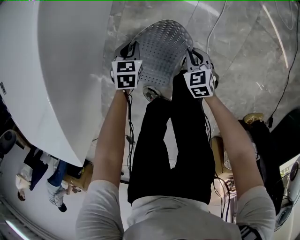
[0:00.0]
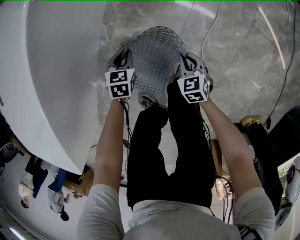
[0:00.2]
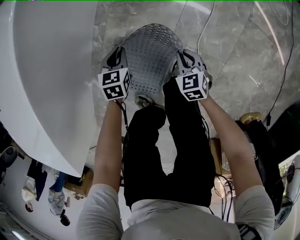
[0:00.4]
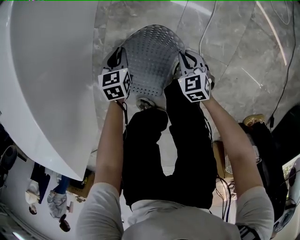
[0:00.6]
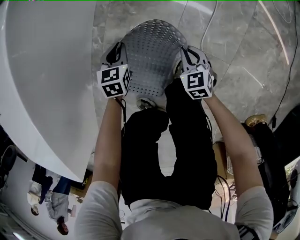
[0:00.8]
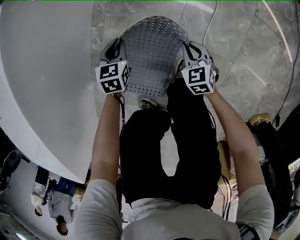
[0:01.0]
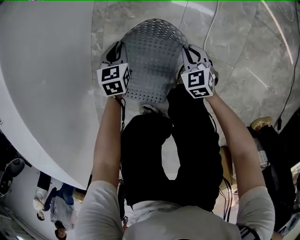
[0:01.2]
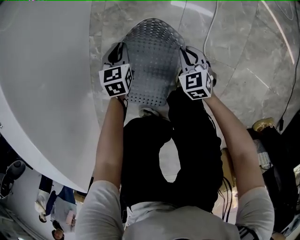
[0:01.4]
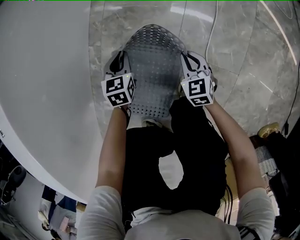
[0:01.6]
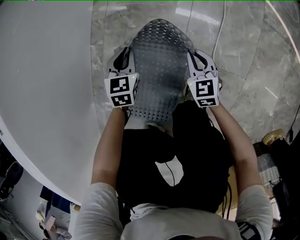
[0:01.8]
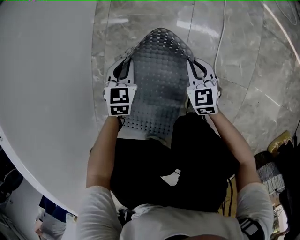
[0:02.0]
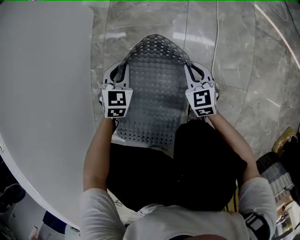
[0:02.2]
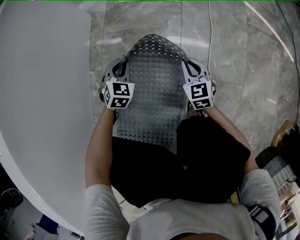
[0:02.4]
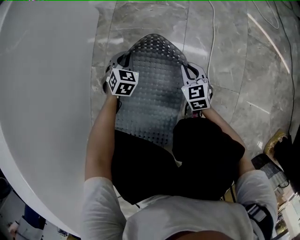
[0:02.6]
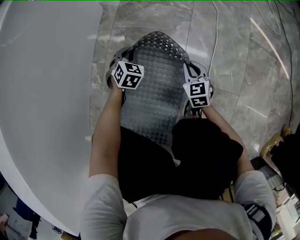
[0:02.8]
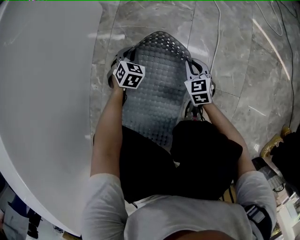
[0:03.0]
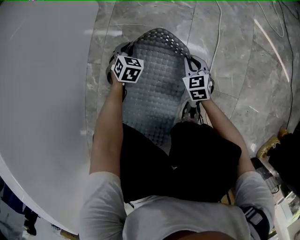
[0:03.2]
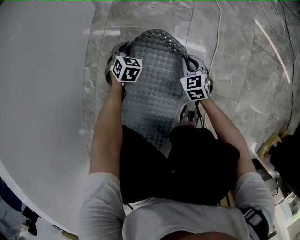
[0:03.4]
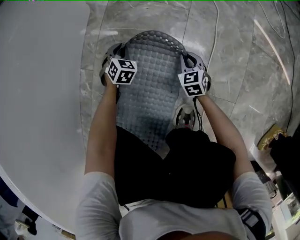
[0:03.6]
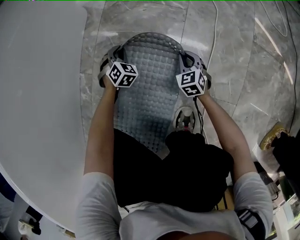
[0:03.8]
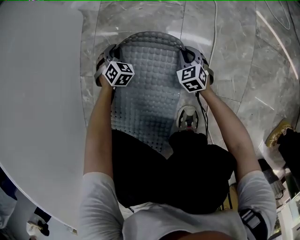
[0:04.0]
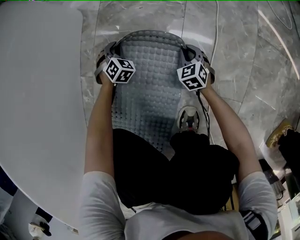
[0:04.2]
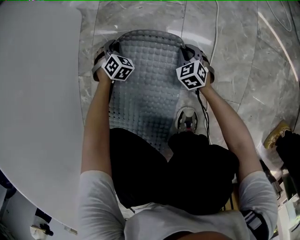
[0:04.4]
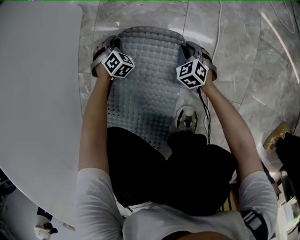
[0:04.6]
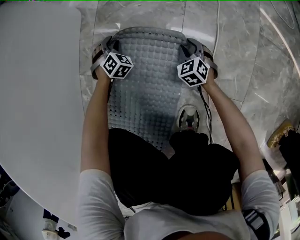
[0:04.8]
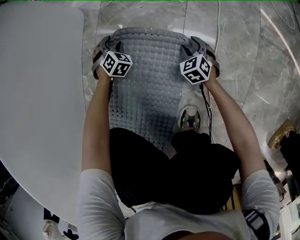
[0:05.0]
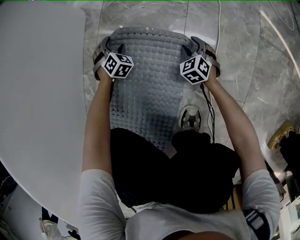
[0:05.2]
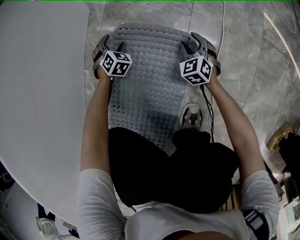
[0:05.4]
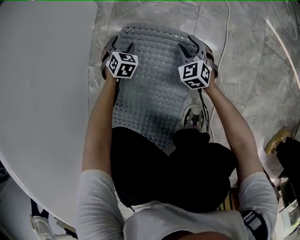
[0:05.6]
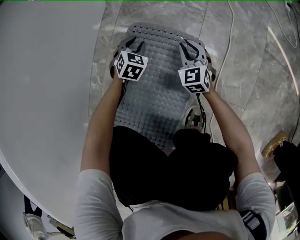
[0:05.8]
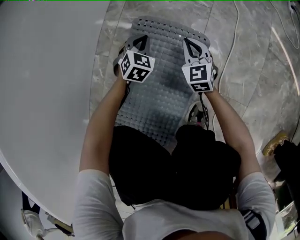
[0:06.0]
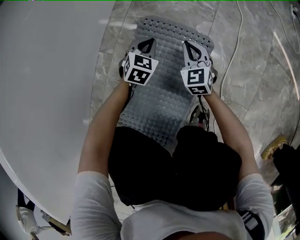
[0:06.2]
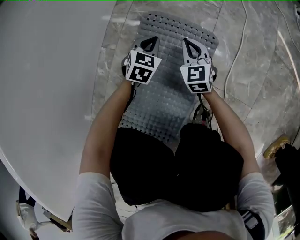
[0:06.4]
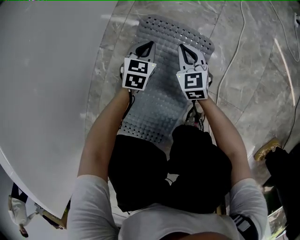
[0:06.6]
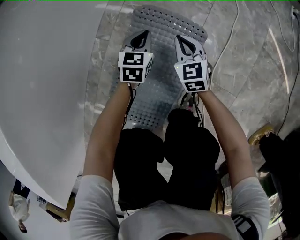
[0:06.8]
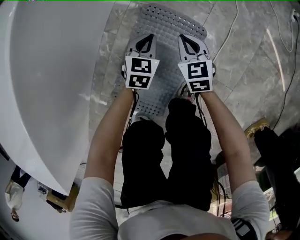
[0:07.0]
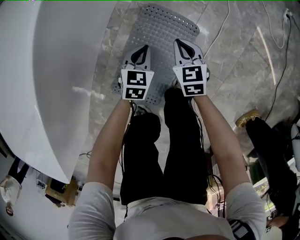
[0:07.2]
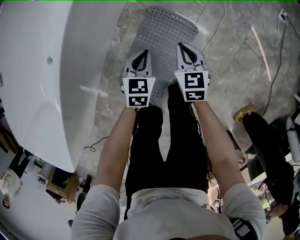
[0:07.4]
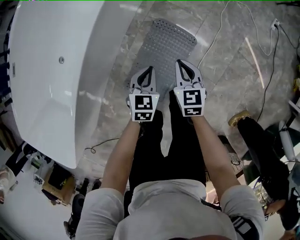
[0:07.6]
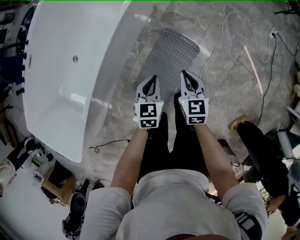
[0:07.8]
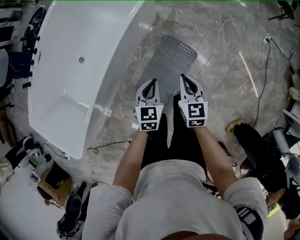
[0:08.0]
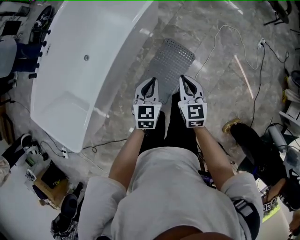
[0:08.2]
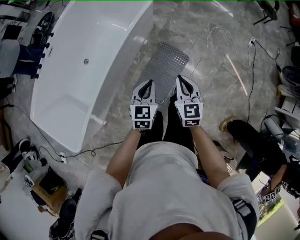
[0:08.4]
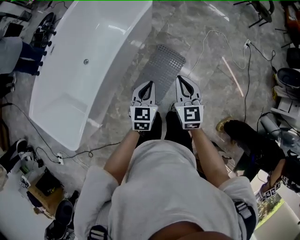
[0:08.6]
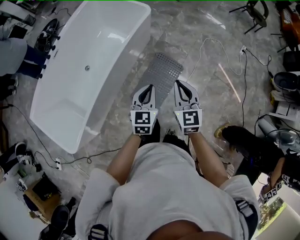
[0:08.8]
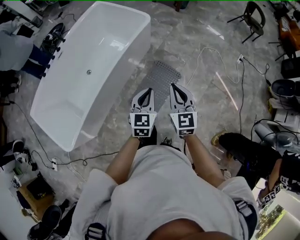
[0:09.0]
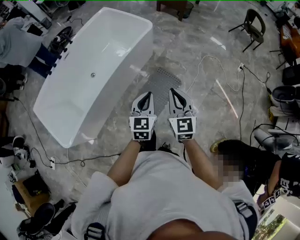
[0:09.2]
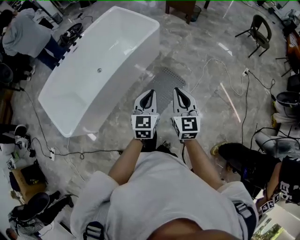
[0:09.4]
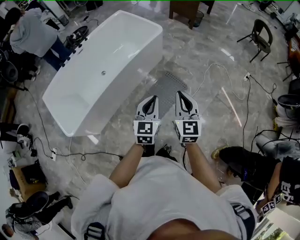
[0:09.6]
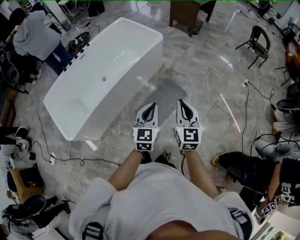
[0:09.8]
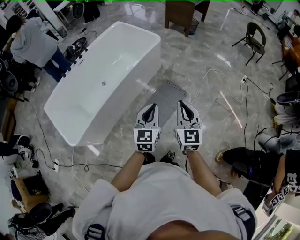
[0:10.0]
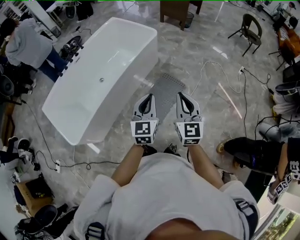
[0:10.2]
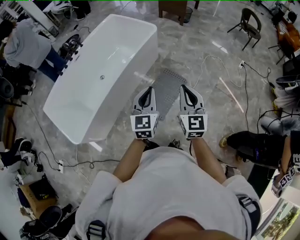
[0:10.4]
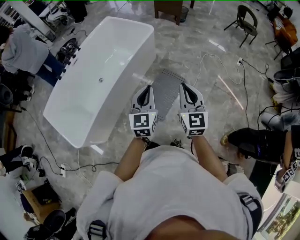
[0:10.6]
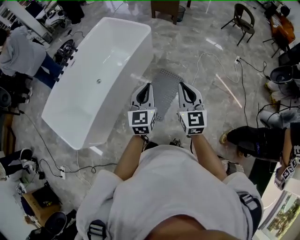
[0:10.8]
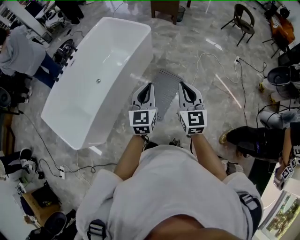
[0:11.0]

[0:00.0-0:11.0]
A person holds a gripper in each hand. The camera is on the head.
0.0 to 1.6 s: Both grippers move downward, roughly 15 cm.
1.6 to 3.2 s: Both grippers travel together downward and forward, approximately 15 cm. The left gripper turns by approximately 30 degrees.
3.2 to 4.8 s: The left gripper heads forward and downward, covering roughly 10 cm, and rotates approximately 30 degrees. Meanwhile the right gripper moves downward, forward and to the right, approximately 10 cm, and opens its fingers.
4.8 to 6.2 s: The right gripper goes approximately 15 cm to the left and upward, changes its angle by about 20 degrees, and closes its fingers, while the left gripper shifts roughly 15 cm upward and backward, rotates approximately 40 degrees, and closes.
6.2 to 7.8 s: Both grippers move upward, approximately 50 cm. The left gripper turns by roughly 40 degrees. The right gripper swivels about 20 degrees.
7.8 to 9.4 s: Both grippers travel together upward and backward, approximately 50 cm. The left gripper changes its angle by roughly 30 degrees, while the right gripper changes its angle by some 30 degrees.
9.4 to 11.0 s: The left gripper travels upward and to the left by about 10 cm; the right gripper is displaced backward by some 5 cm.

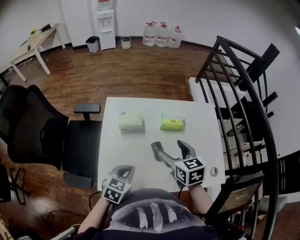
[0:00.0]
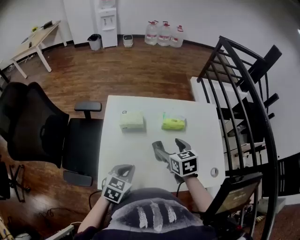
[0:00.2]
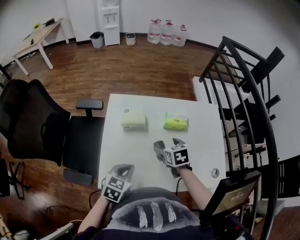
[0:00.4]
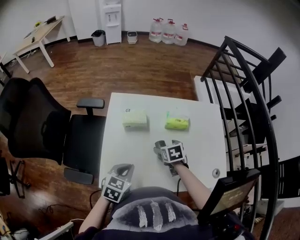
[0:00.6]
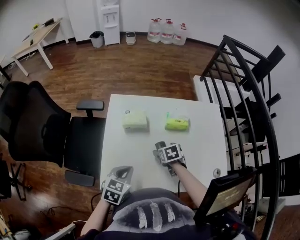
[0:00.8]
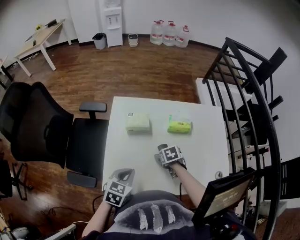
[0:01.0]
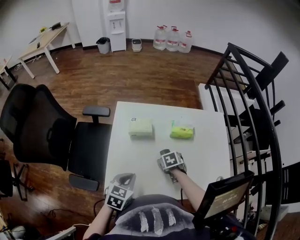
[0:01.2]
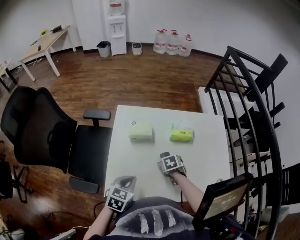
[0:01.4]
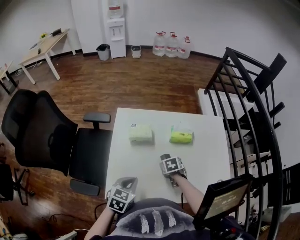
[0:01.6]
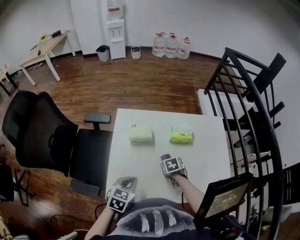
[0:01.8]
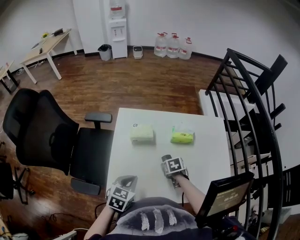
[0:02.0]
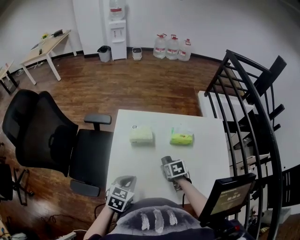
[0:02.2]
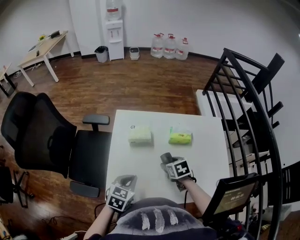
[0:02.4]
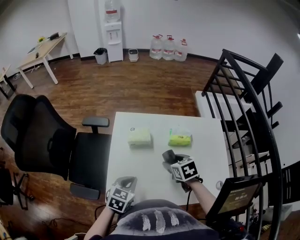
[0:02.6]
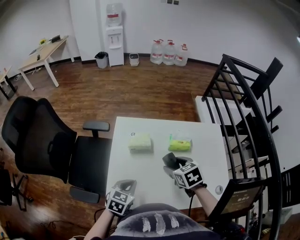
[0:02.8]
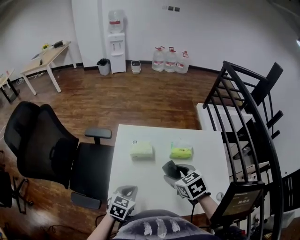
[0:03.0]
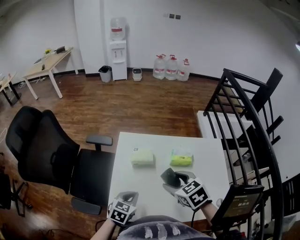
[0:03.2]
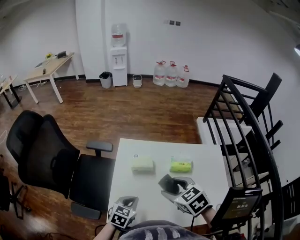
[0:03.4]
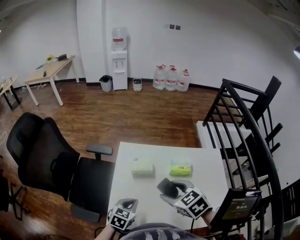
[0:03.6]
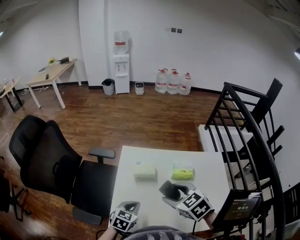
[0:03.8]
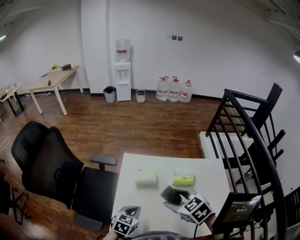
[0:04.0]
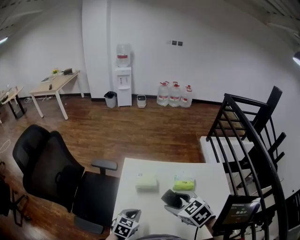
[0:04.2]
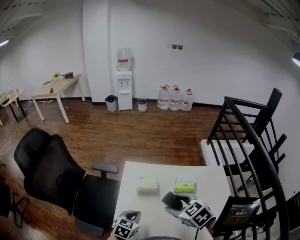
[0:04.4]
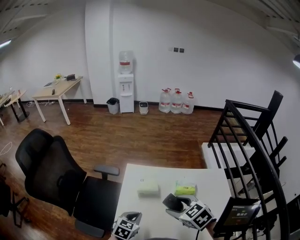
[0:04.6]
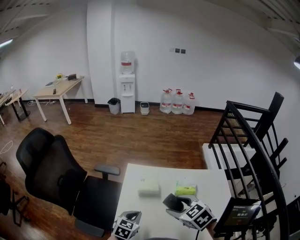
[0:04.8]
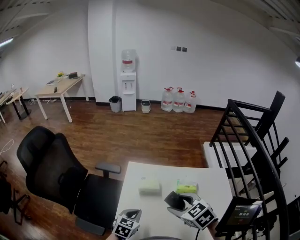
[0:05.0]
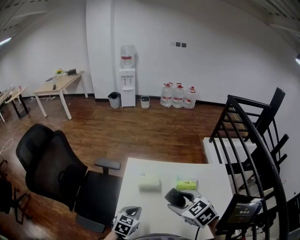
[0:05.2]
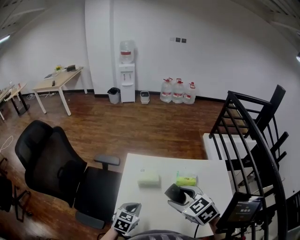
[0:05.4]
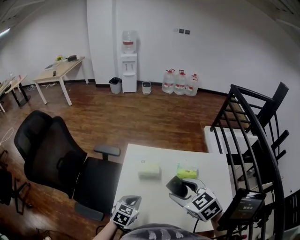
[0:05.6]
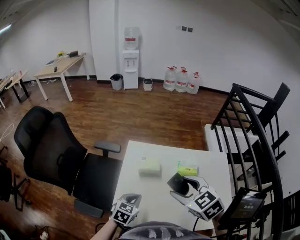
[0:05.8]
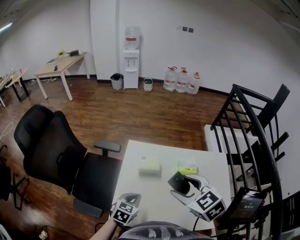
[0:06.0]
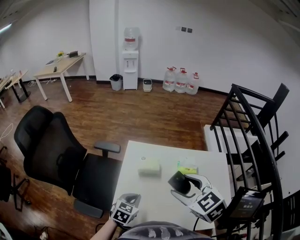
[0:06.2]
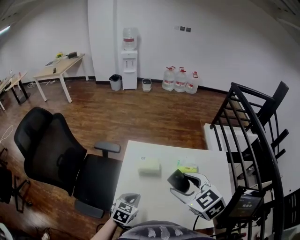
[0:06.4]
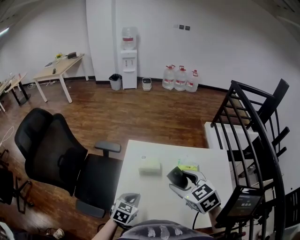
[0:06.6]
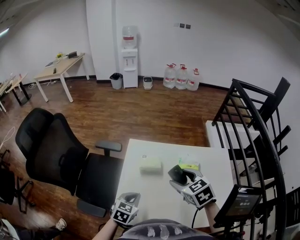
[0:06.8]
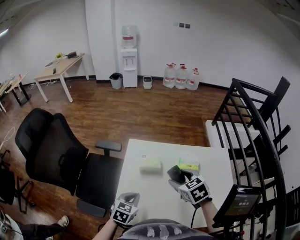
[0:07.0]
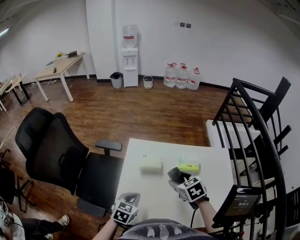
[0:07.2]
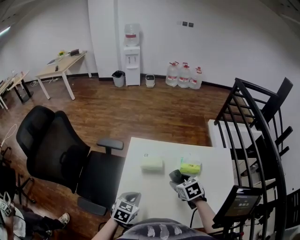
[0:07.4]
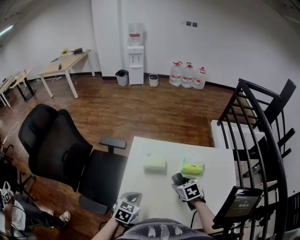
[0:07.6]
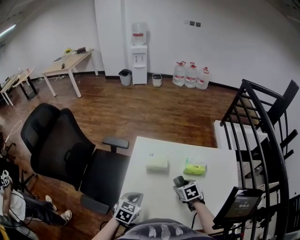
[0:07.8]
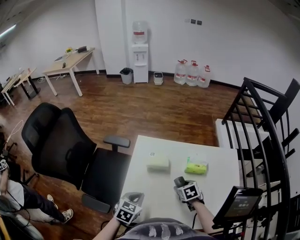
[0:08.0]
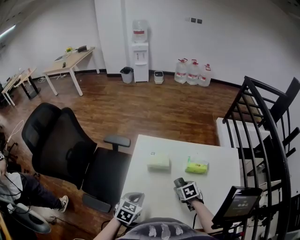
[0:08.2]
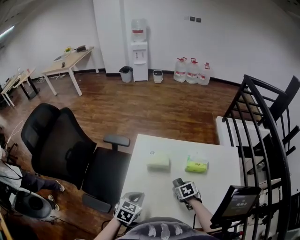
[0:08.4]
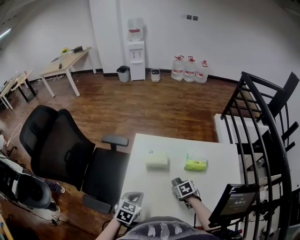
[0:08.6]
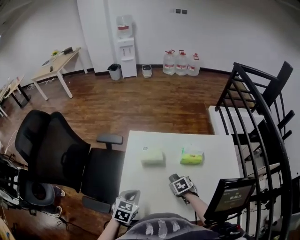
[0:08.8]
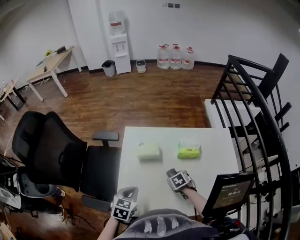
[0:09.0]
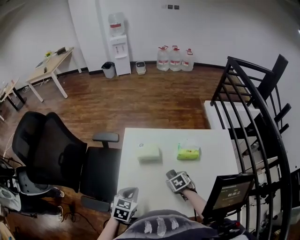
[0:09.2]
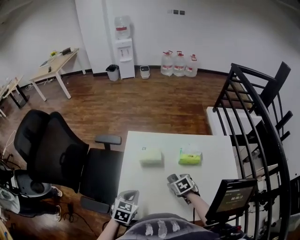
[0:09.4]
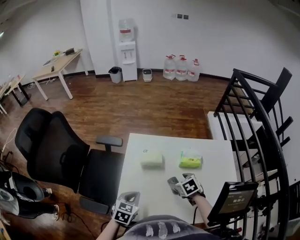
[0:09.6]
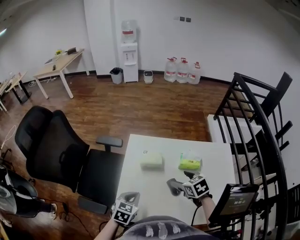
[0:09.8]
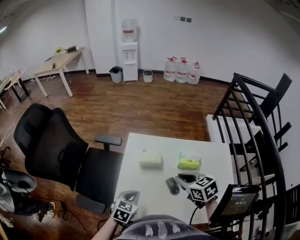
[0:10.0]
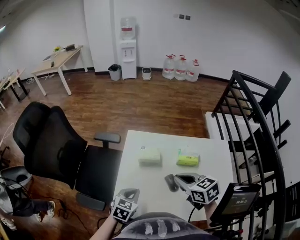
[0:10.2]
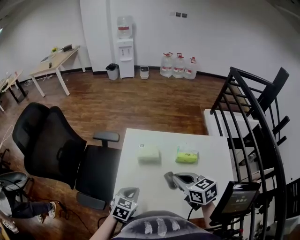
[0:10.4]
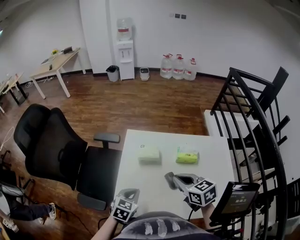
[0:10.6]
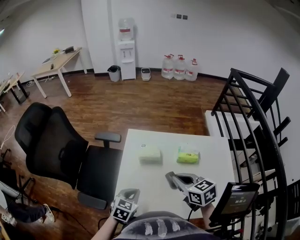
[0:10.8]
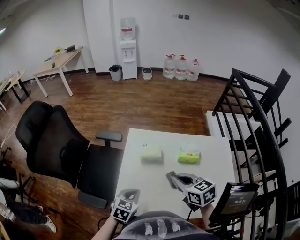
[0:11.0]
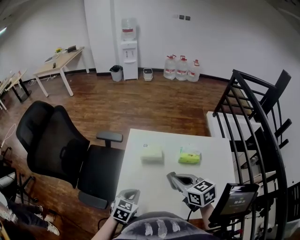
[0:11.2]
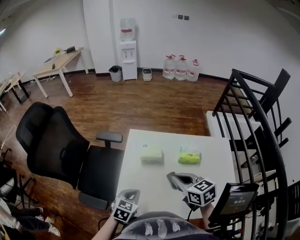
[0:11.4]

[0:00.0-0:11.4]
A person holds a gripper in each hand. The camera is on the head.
0.0 to 1.4 s: The right gripper heads downward, covering some 20 cm, and angles its fingers downward, by about 40 degrees.
1.4 to 2.8 s: The right gripper moves upward, about 20 cm, and rotates approximately 20 degrees.
2.8 to 4.2 s: The right gripper shifts about 10 cm upward, and swivels approximately 20 degrees.
4.2 to 5.6 s: The grippers move only a little.
5.6 to 7.2 s: The right gripper travels downward and forward by about 10 cm.
7.2 to 8.6 s: The right gripper heads downward, covering roughly 20 cm, and rotates some 20 degrees.
8.6 to 10.0 s: The right gripper travels upward by roughly 20 cm, changes its angle by roughly 30 degrees, and closes up.
10.0 to 11.4 s: There are only small adjustments of the grippers.

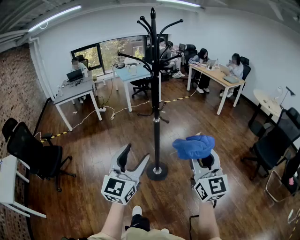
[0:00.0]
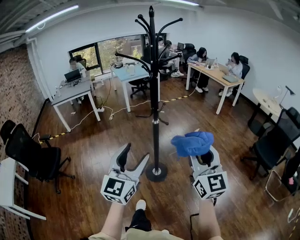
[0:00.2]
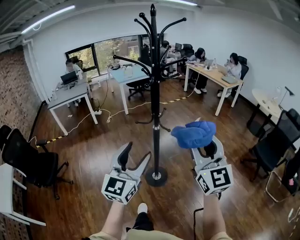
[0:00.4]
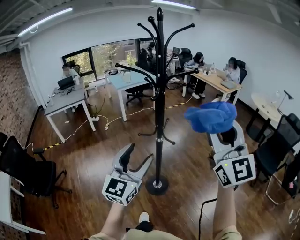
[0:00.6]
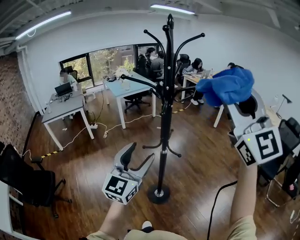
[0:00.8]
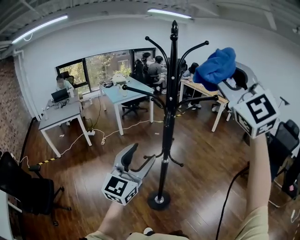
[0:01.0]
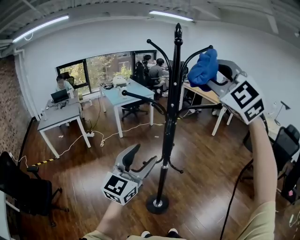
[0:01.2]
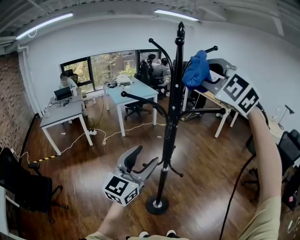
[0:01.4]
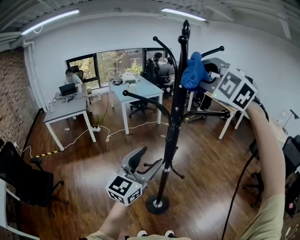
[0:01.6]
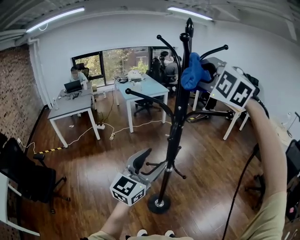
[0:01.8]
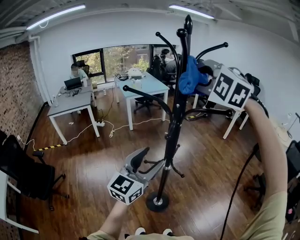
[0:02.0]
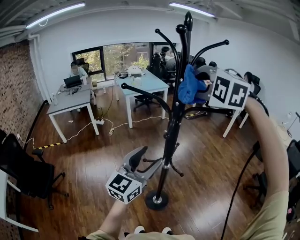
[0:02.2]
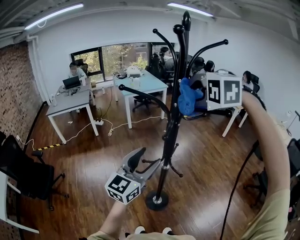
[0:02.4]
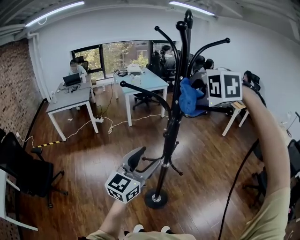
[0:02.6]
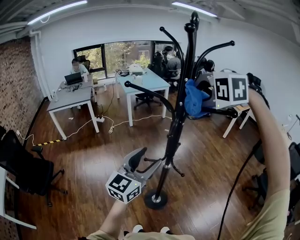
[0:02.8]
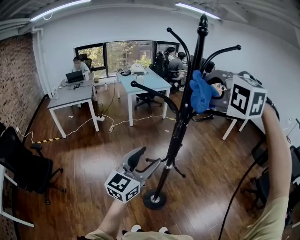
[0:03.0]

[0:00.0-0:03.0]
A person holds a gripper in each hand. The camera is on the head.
0.0 to 1.6 s: The right gripper is displaced forward, upward and to the left by some 50 cm, and rolls counterclockwise, seen from behind, by about 60 degrees, while the left gripper travels forward by approximately 30 cm.
1.6 to 3.0 s: The right gripper travels downward by approximately 10 cm, and swivels roughly 30 degrees.
